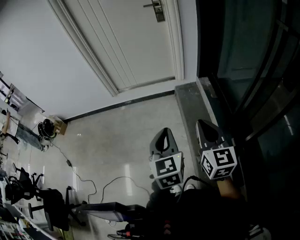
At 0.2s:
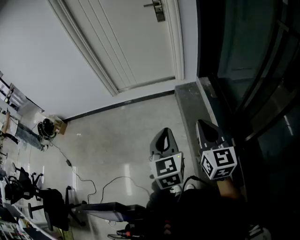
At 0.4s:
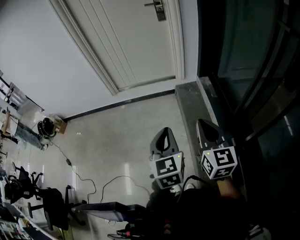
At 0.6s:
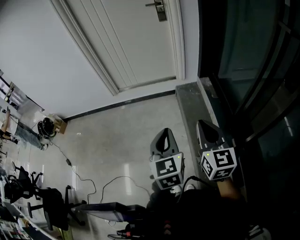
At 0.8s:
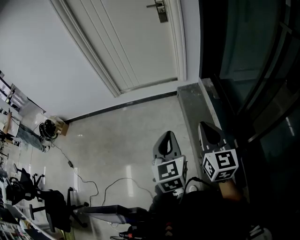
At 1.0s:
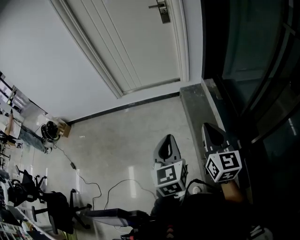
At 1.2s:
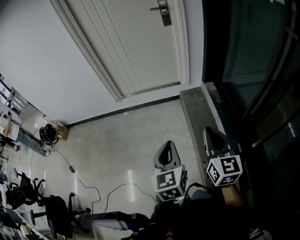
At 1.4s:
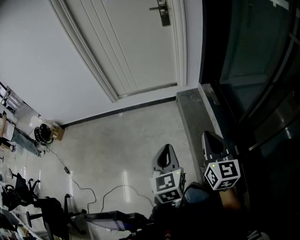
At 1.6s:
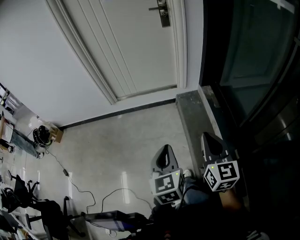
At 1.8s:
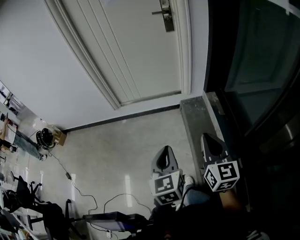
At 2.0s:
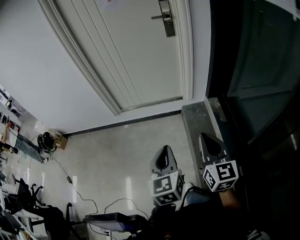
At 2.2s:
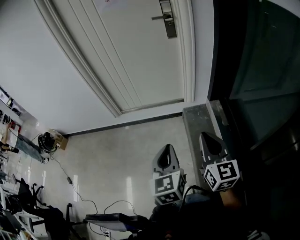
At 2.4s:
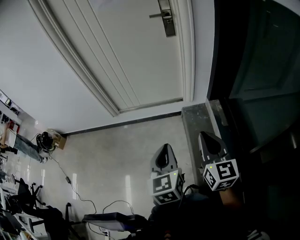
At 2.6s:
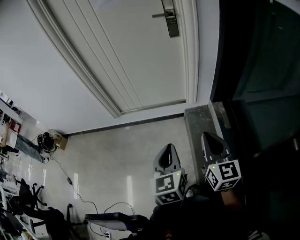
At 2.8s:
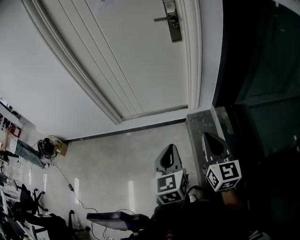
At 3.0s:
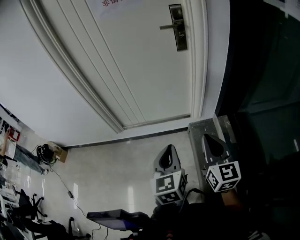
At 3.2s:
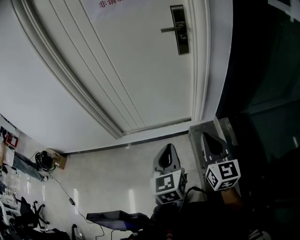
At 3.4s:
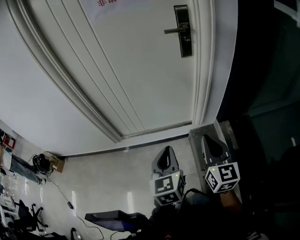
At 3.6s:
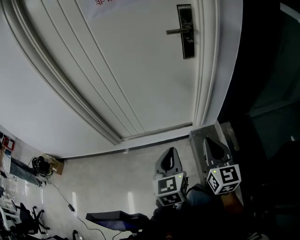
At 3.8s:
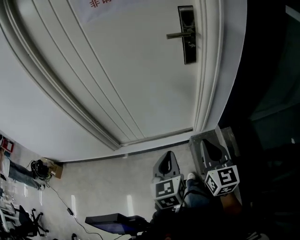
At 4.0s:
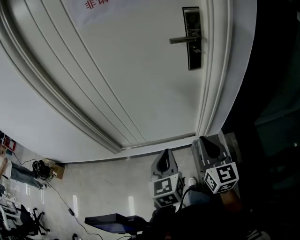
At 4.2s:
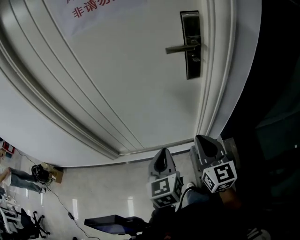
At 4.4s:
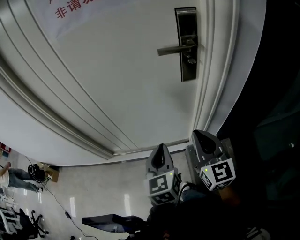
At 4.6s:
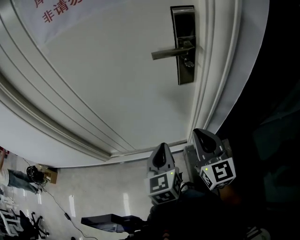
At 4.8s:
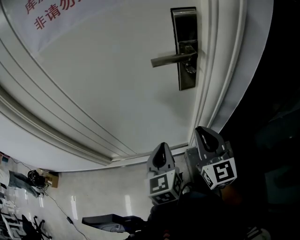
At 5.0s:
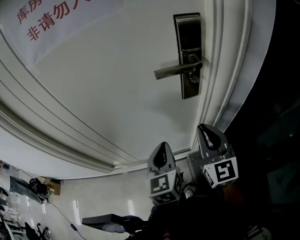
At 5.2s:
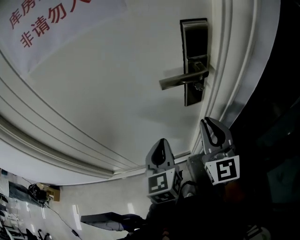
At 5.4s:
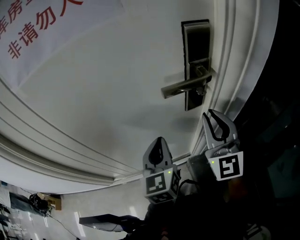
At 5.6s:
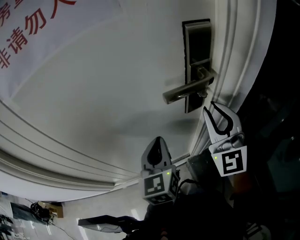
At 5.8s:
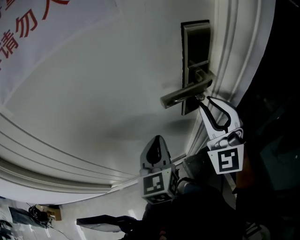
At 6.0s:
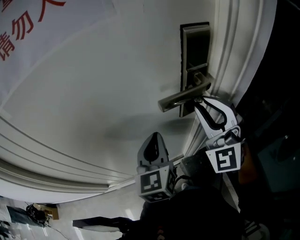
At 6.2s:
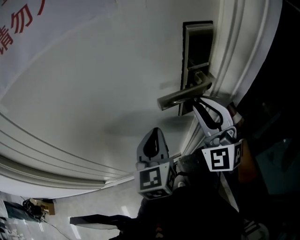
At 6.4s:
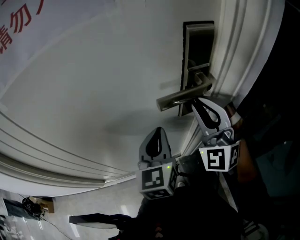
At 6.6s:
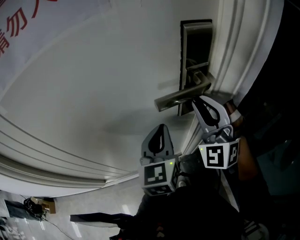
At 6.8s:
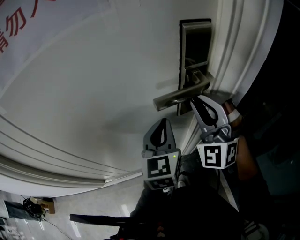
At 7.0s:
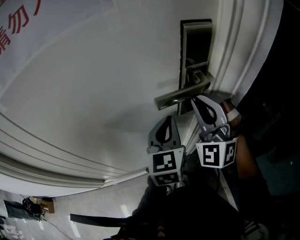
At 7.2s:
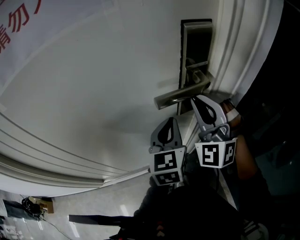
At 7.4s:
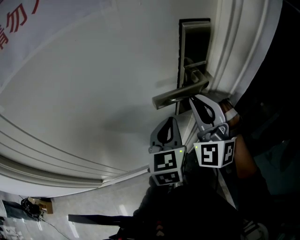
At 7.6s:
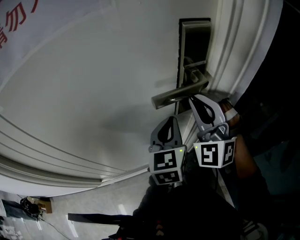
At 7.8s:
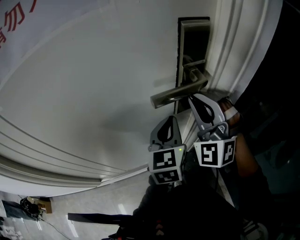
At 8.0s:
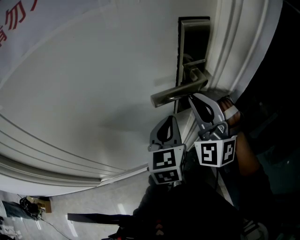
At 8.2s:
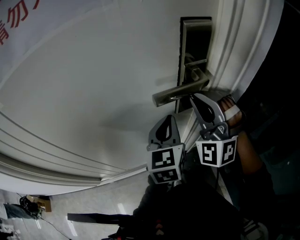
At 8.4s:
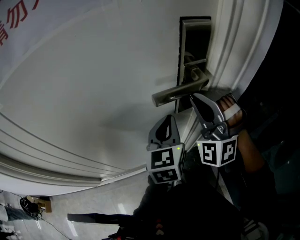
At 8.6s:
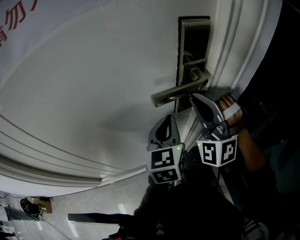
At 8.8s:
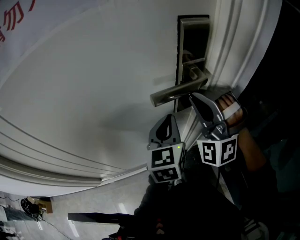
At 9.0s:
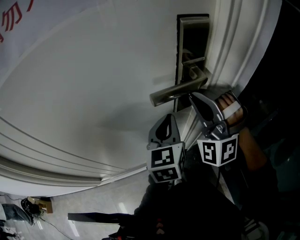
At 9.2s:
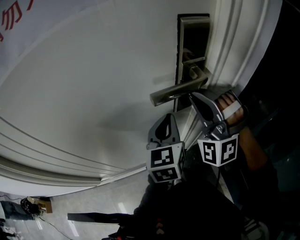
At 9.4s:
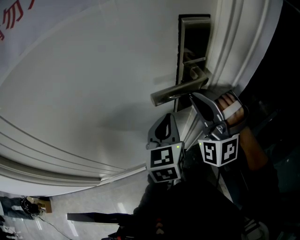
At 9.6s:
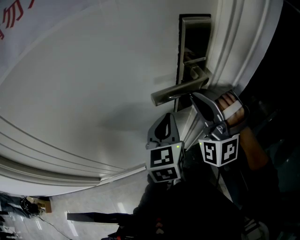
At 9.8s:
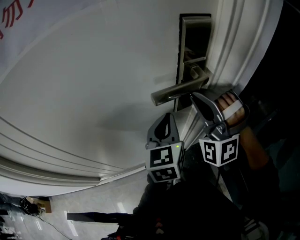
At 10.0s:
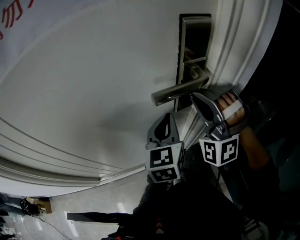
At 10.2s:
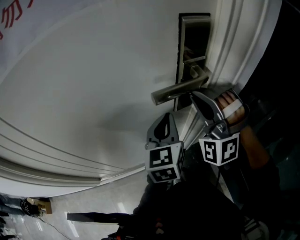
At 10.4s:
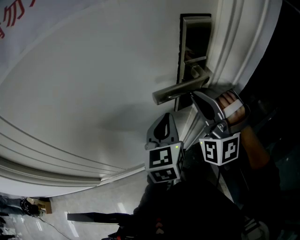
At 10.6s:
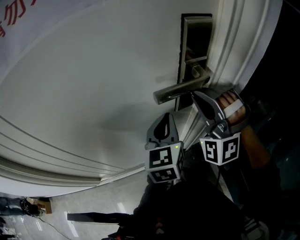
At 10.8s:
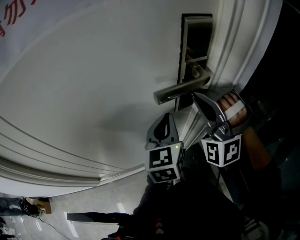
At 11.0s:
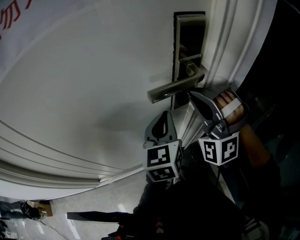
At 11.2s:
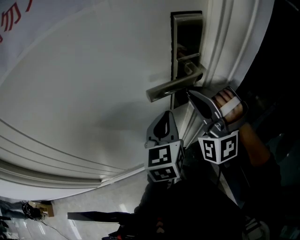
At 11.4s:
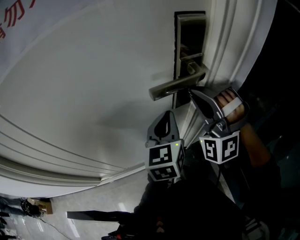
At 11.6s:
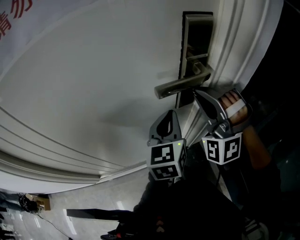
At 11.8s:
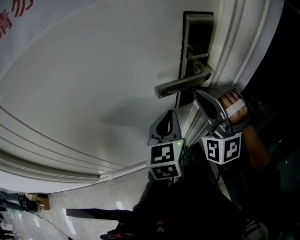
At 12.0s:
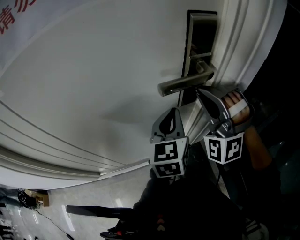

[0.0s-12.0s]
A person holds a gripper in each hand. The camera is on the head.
0.0s to 1.6s: The left gripper goes some 10 cm forward and to the left. The right gripper heads forward, covering about 10 cm.
1.6s to 3.0s: Both grippers move forward, some 40 cm.
3.0s to 4.4s: The two grippers go about 40 cm forward.
4.4s to 6.0s: The left gripper moves forward, roughly 25 cm, while the right gripper moves forward and upward, approximately 25 cm, and rolls counterclockwise, seen from behind, by roughly 50 degrees.
6.0s to 7.6s: The left gripper goes approximately 10 cm to the right.
7.6s to 9.0s: There are only small adjustments of the grippers.
9.0s to 12.0s: The grippers move only a little.

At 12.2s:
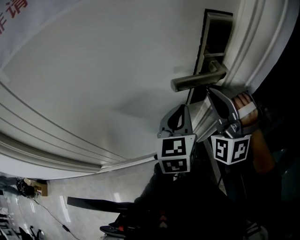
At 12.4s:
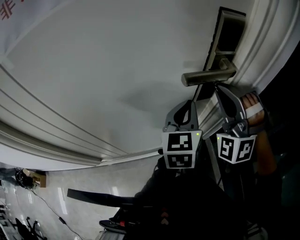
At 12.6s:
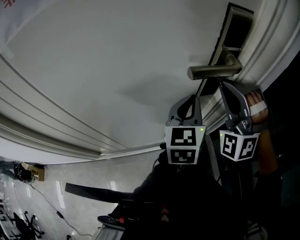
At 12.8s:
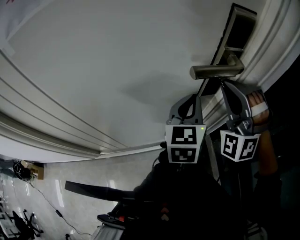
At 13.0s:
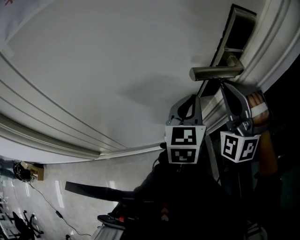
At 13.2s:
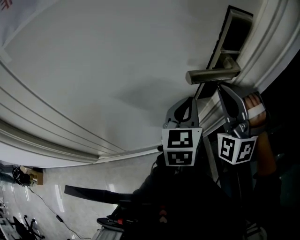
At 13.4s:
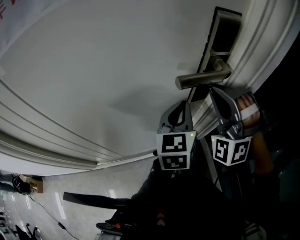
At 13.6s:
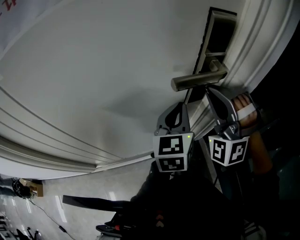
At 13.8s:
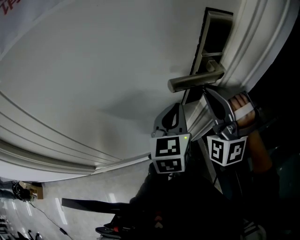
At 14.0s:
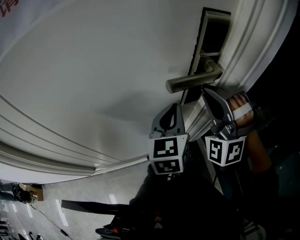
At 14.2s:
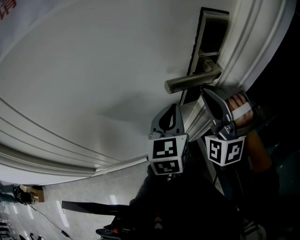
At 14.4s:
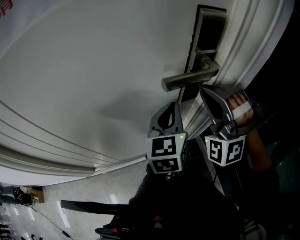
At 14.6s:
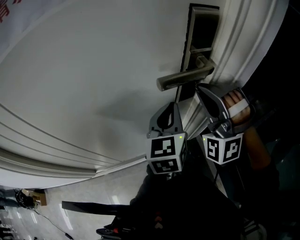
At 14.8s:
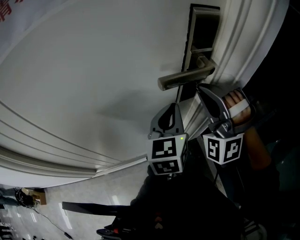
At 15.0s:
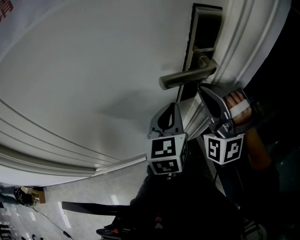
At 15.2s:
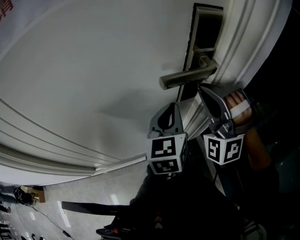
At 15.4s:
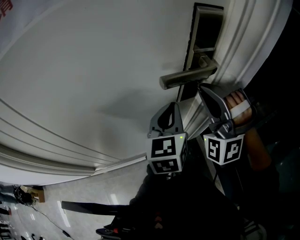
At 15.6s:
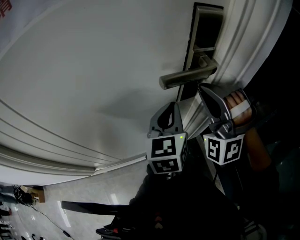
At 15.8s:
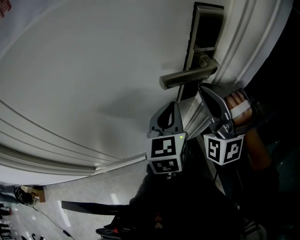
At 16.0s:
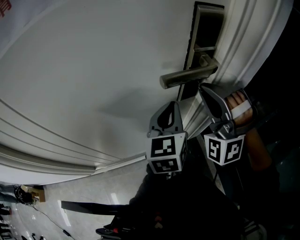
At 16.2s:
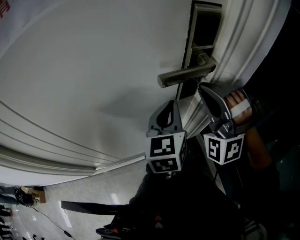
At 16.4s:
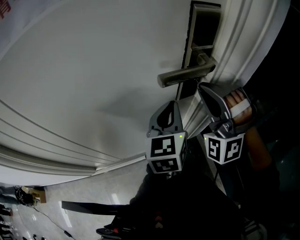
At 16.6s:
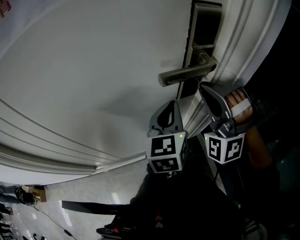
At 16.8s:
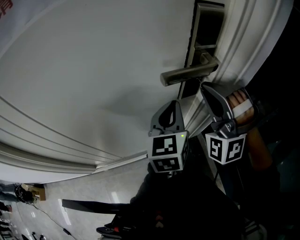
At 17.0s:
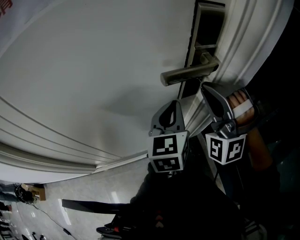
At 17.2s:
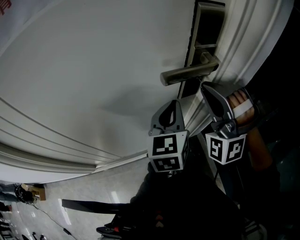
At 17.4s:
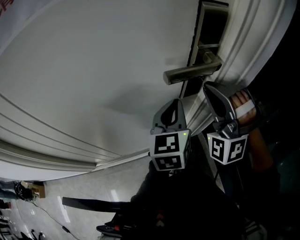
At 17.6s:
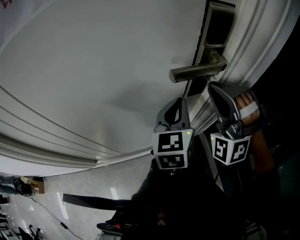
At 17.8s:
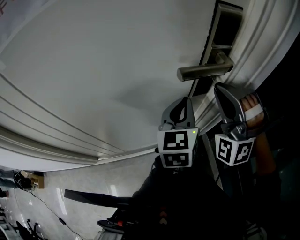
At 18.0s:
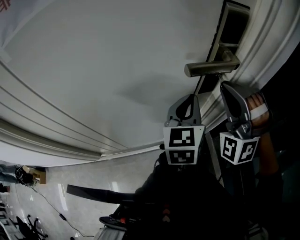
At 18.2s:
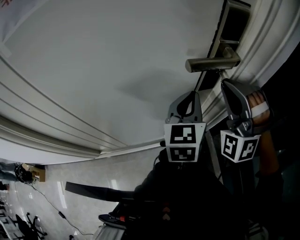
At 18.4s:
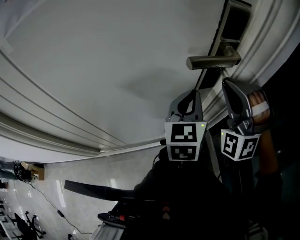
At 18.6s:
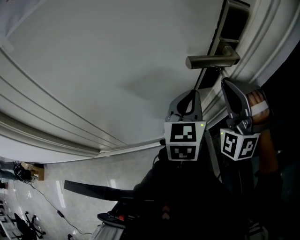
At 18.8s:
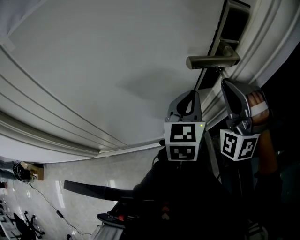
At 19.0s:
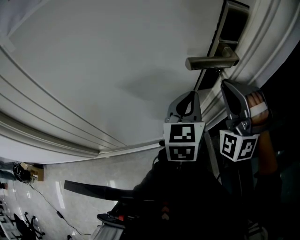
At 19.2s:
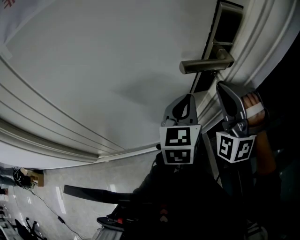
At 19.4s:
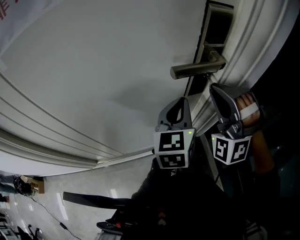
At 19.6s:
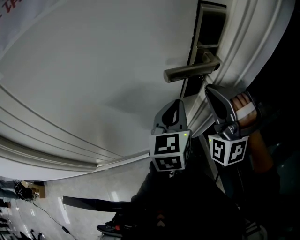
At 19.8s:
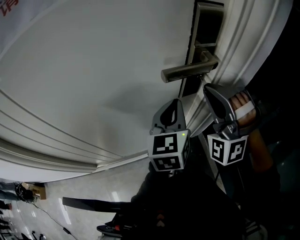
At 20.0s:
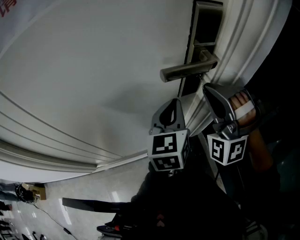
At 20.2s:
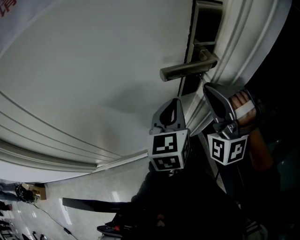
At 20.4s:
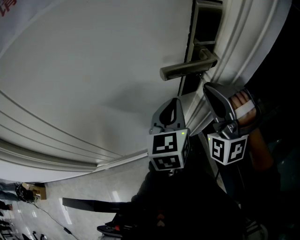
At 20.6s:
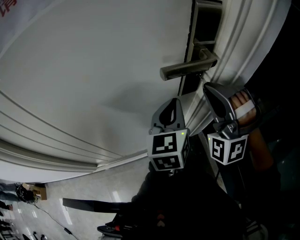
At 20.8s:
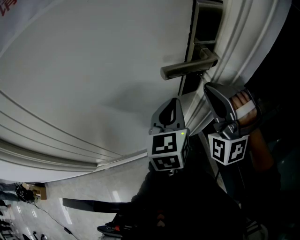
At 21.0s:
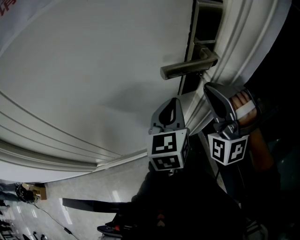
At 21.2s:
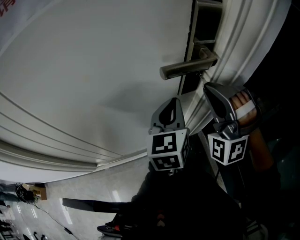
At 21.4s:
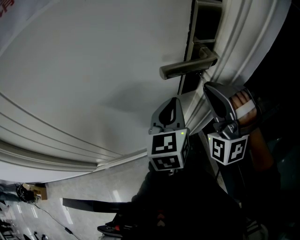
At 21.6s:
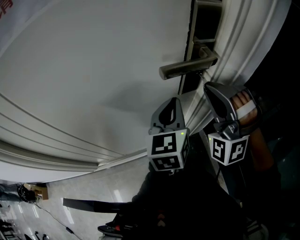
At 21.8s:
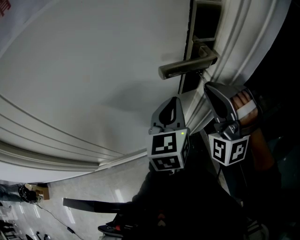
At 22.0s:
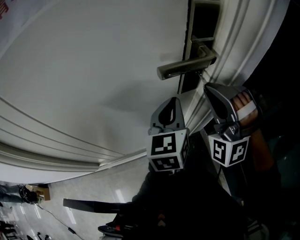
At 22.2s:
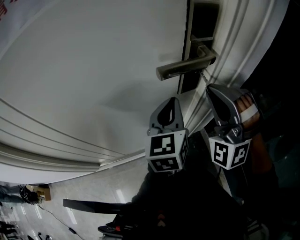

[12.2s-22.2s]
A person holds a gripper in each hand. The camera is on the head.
12.2s to 18.0s: Both grippers stay about where they are.
18.0s to 20.8s: Both grippers stay put.
20.8s to 22.2s: The grippers move only a little.

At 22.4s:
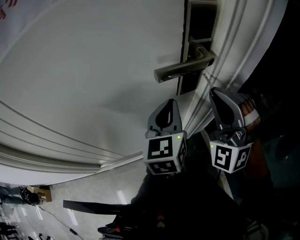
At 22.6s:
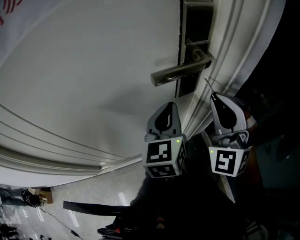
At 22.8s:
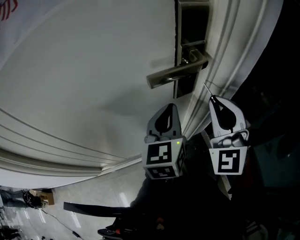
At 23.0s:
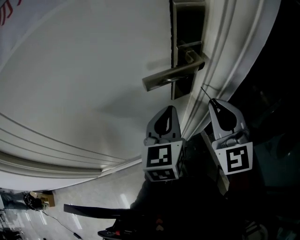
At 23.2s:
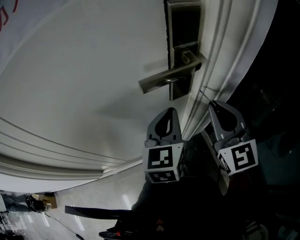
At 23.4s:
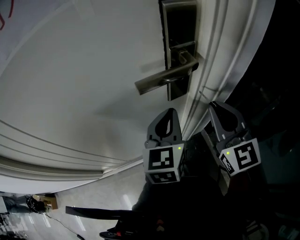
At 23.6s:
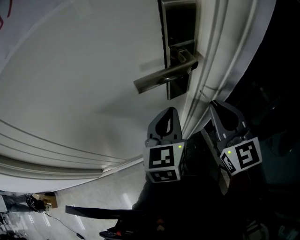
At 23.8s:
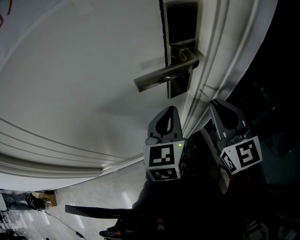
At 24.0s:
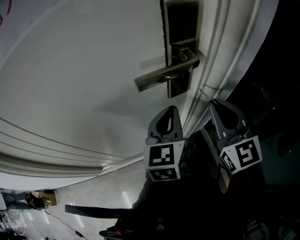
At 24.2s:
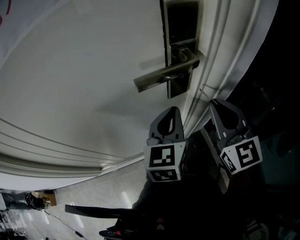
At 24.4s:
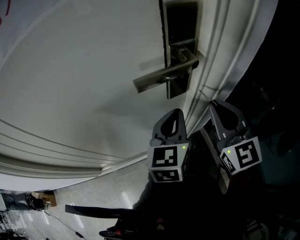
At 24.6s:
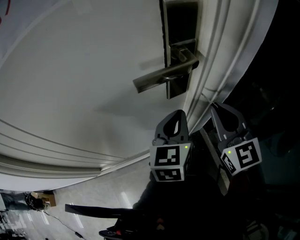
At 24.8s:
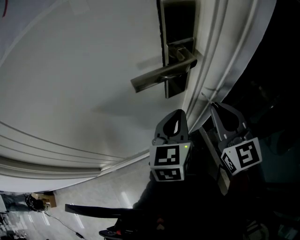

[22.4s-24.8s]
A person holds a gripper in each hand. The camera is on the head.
22.4s to 23.6s: The right gripper shifts by about 5 cm, and rotates around the line of its fingers by approximately 70 degrees, clockwise from behind.
23.6s to 24.8s: The grippers move only a little.
